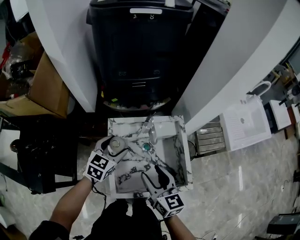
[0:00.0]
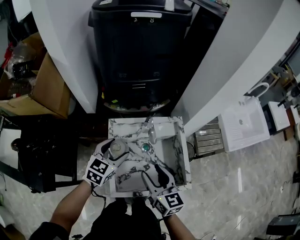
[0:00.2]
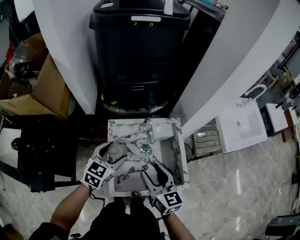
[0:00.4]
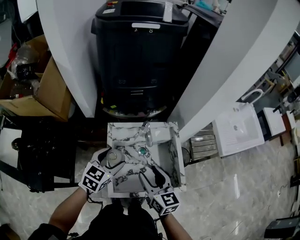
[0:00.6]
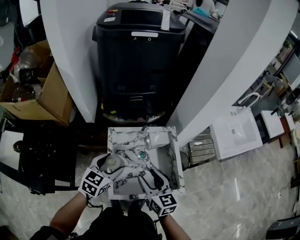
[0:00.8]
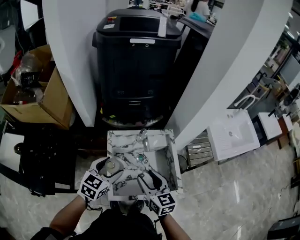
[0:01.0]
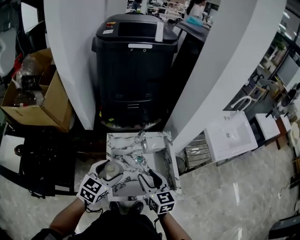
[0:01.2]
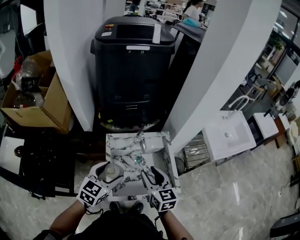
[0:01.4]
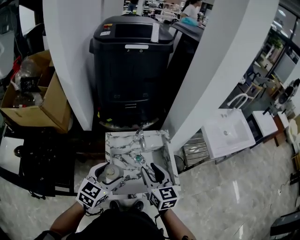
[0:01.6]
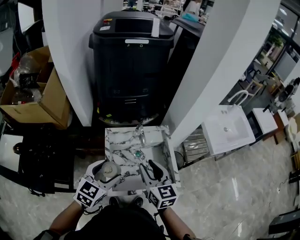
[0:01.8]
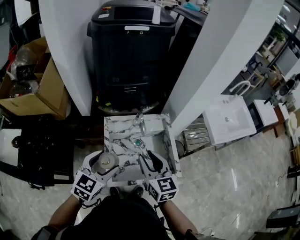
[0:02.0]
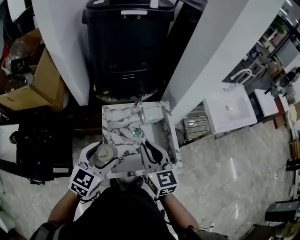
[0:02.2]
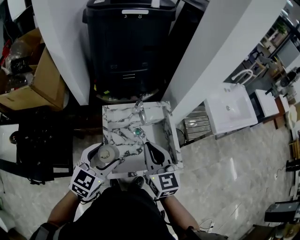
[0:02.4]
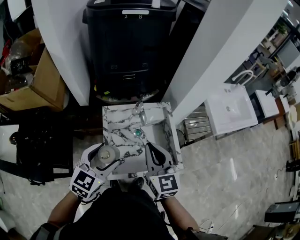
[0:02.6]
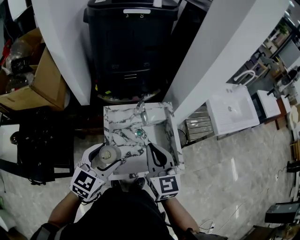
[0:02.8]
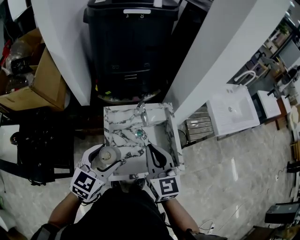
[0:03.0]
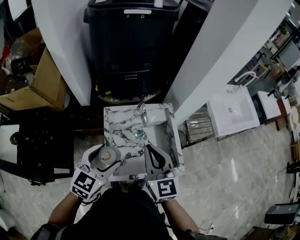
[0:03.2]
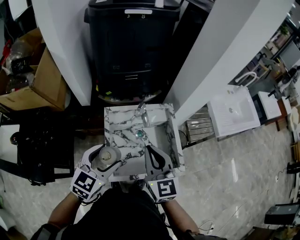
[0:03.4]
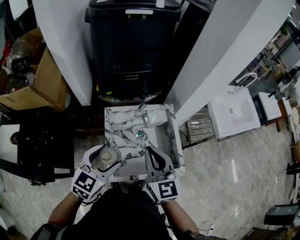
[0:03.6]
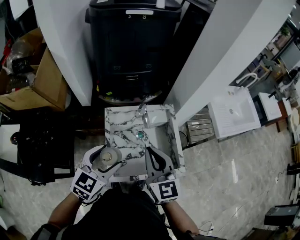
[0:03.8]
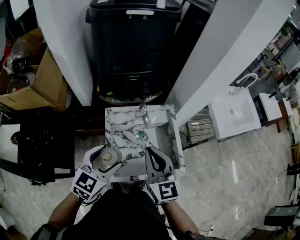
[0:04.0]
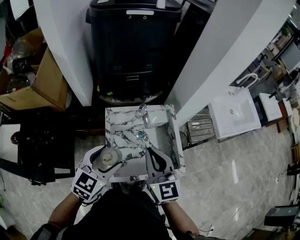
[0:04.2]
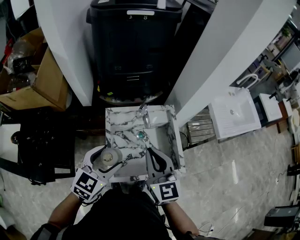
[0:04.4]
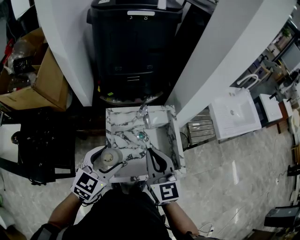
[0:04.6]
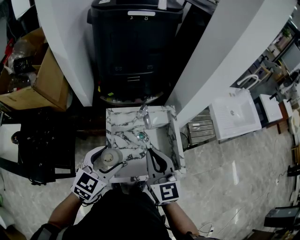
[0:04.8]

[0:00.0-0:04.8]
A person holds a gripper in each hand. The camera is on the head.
0:00.0 to 0:01.6: The left gripper moves backward and upward, some 20 cm, while the right gripper shifts some 10 cm upward.
0:01.6 to 0:03.2: The right gripper closes up.
0:03.2 to 0:04.8: Both grippers stay about where they are.

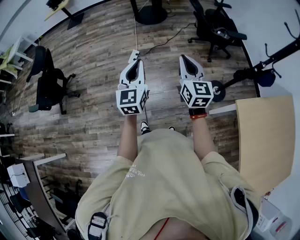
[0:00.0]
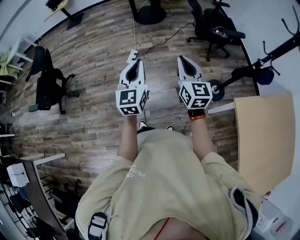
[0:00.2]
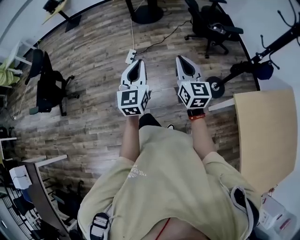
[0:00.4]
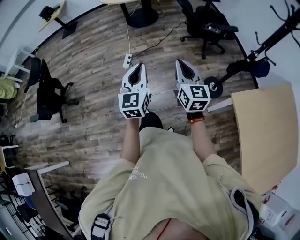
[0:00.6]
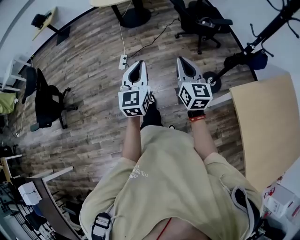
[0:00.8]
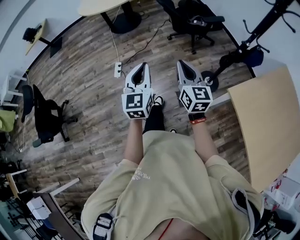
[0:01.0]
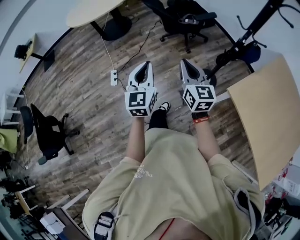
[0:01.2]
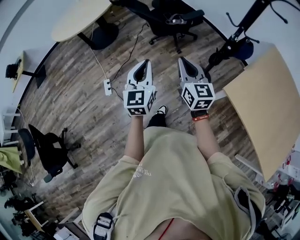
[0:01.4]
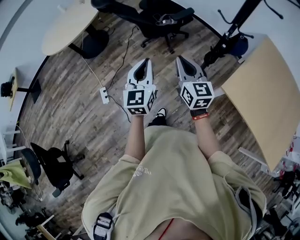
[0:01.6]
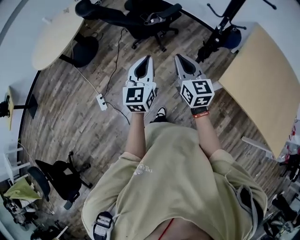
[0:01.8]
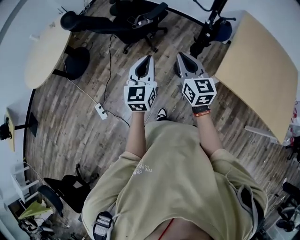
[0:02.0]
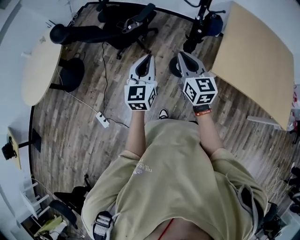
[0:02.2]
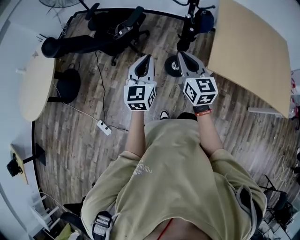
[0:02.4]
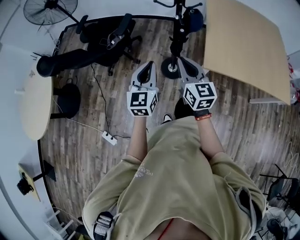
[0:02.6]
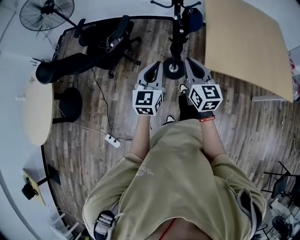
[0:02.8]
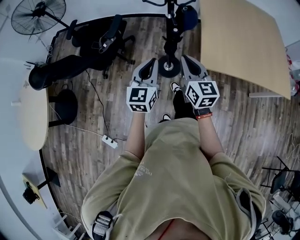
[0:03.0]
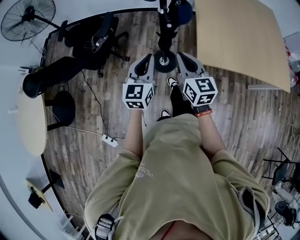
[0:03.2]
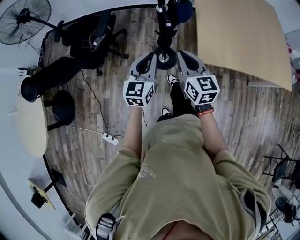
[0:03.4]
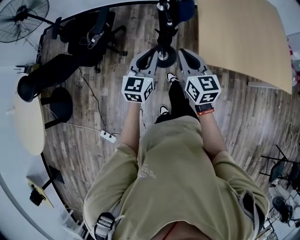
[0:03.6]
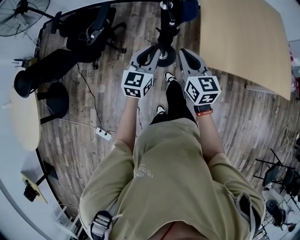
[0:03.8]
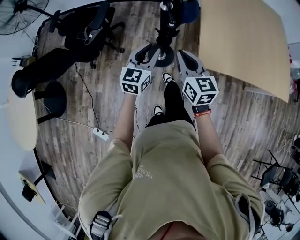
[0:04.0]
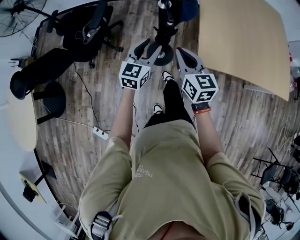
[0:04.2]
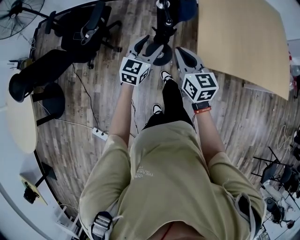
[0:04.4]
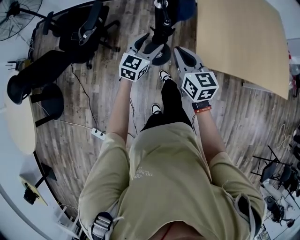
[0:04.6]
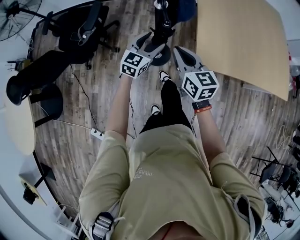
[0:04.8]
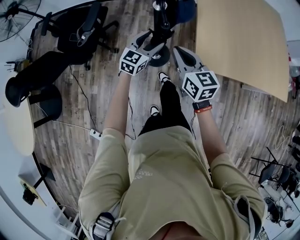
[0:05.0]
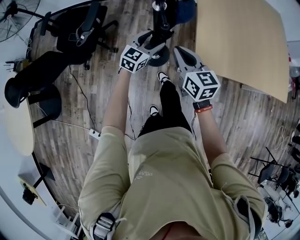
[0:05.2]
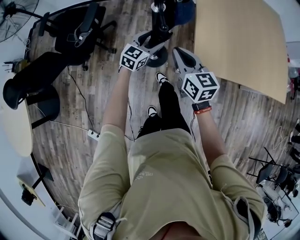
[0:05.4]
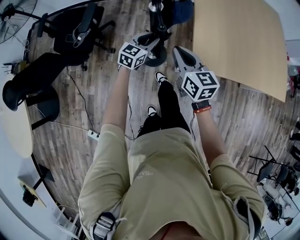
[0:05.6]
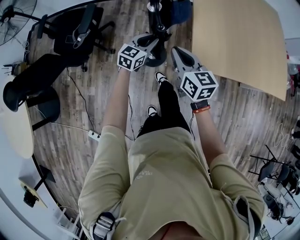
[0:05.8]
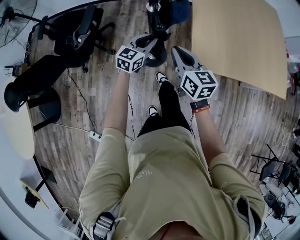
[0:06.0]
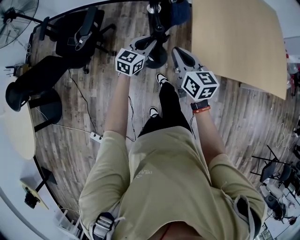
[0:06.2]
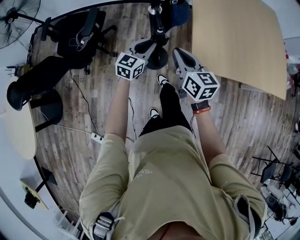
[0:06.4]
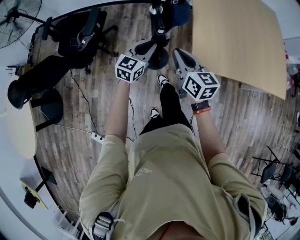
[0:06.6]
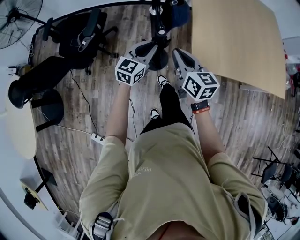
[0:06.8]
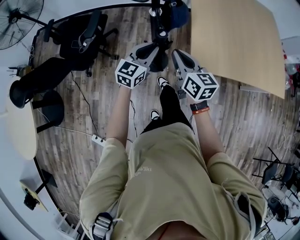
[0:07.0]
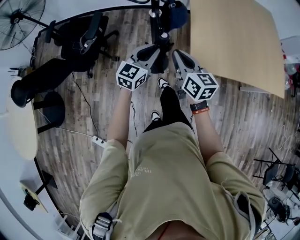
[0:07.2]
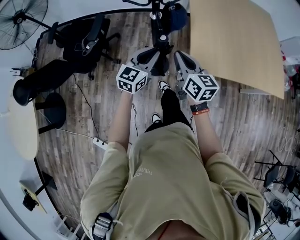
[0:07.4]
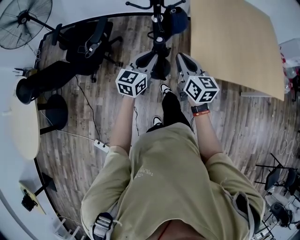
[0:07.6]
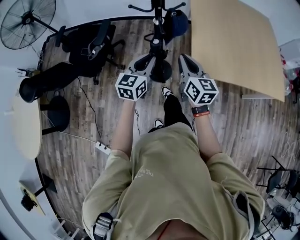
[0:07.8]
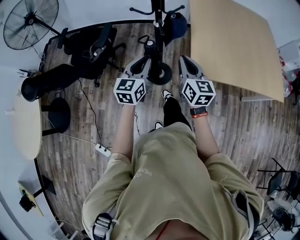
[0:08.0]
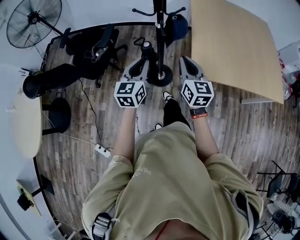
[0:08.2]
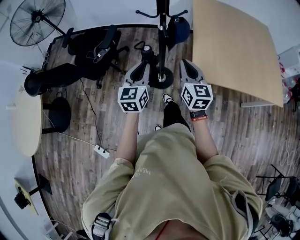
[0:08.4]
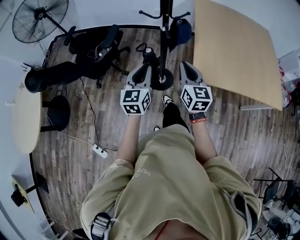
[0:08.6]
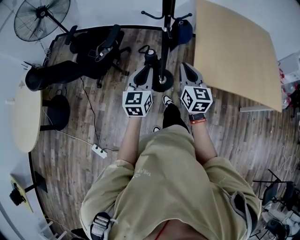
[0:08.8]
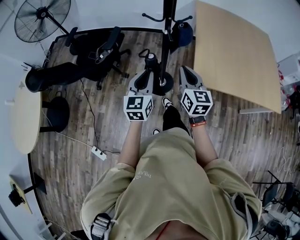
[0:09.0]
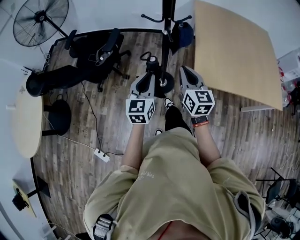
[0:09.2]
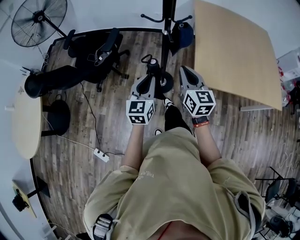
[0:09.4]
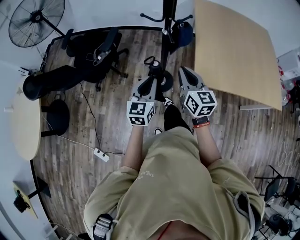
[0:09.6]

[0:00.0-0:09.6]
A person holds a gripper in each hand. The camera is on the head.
0:00.0 to 0:01.6: The left gripper changes place by about 40 cm, and swivels approximately 40 degrees. The right gripper moves about 30 cm, and swivels about 30 degrees.
0:01.6 to 0:03.2: The left gripper ends up approximately 30 cm from where it was, and rotates approximately 50 degrees; the right gripper moves about 25 cm, and changes its angle by roughly 40 degrees.
0:03.2 to 0:04.8: The right gripper goes about 10 cm forward and downward; the left gripper moves forward and downward, about 20 cm, swivels approximately 20 degrees, and opens up.
0:04.8 to 0:06.4: The left gripper closes.
0:06.4 to 0:08.0: The right gripper moves upward and backward, some 10 cm. The left gripper travels upward and backward by roughly 20 cm.
0:08.0 to 0:09.6: The left gripper is displaced backward by about 5 cm; the right gripper changes place by about 5 cm.

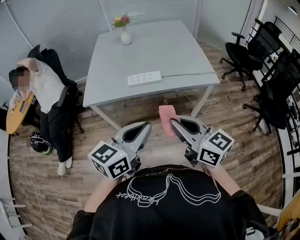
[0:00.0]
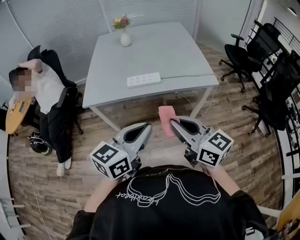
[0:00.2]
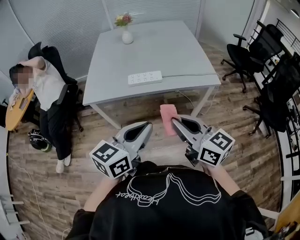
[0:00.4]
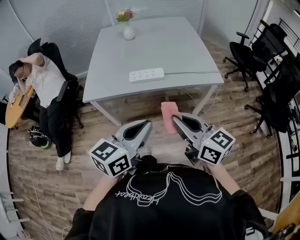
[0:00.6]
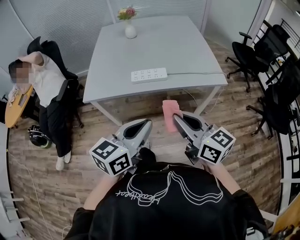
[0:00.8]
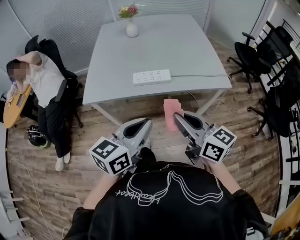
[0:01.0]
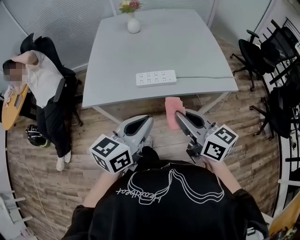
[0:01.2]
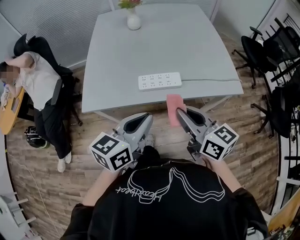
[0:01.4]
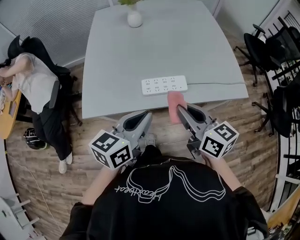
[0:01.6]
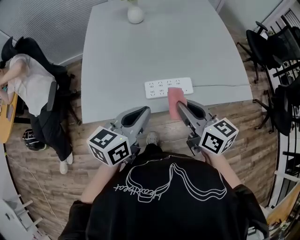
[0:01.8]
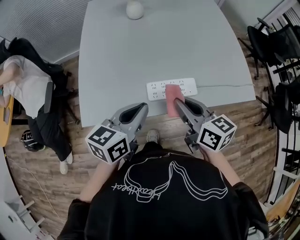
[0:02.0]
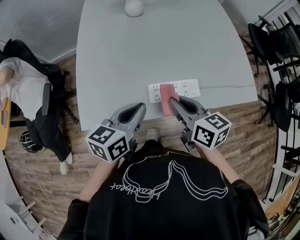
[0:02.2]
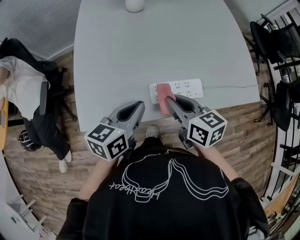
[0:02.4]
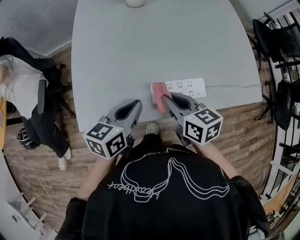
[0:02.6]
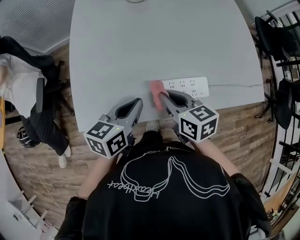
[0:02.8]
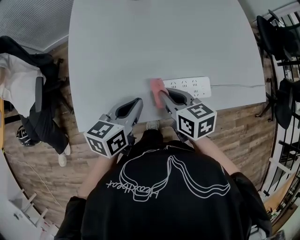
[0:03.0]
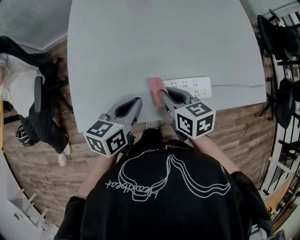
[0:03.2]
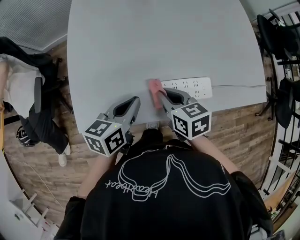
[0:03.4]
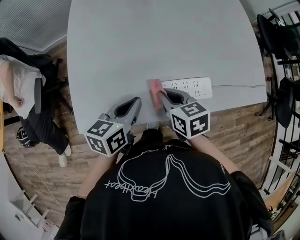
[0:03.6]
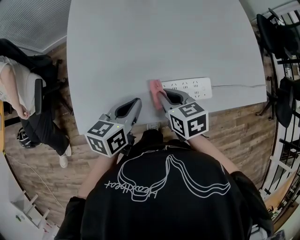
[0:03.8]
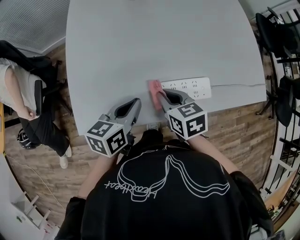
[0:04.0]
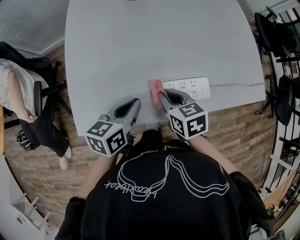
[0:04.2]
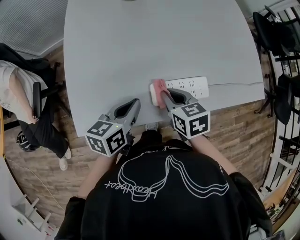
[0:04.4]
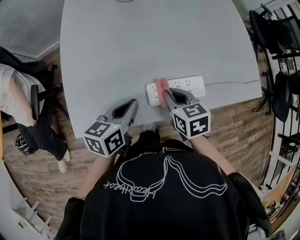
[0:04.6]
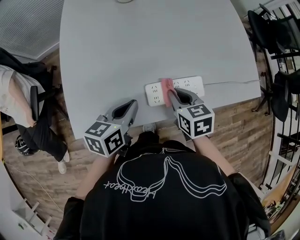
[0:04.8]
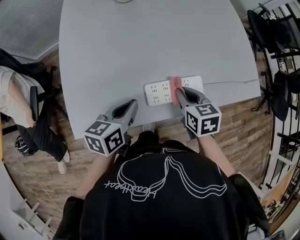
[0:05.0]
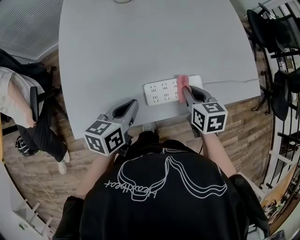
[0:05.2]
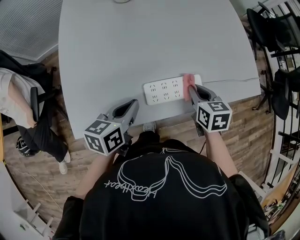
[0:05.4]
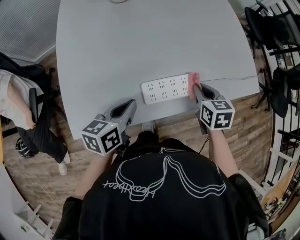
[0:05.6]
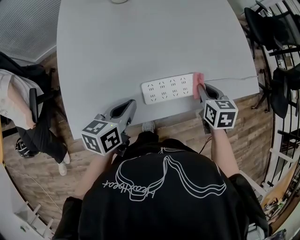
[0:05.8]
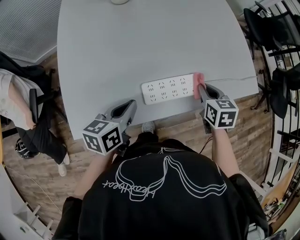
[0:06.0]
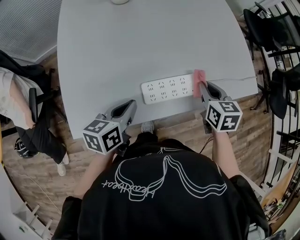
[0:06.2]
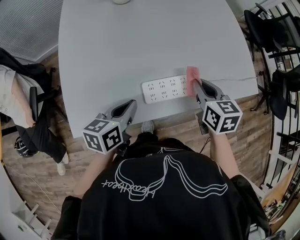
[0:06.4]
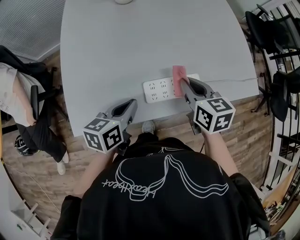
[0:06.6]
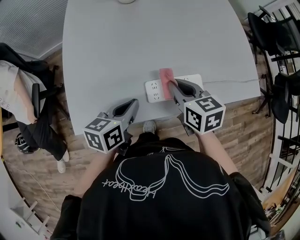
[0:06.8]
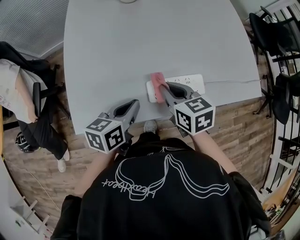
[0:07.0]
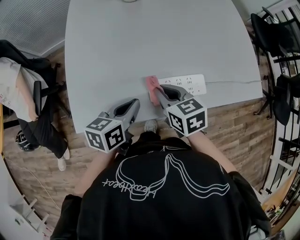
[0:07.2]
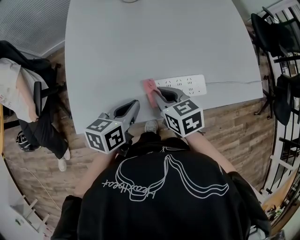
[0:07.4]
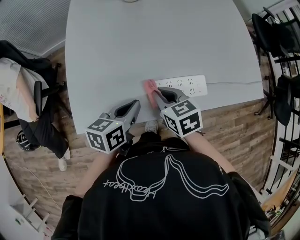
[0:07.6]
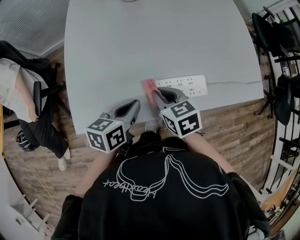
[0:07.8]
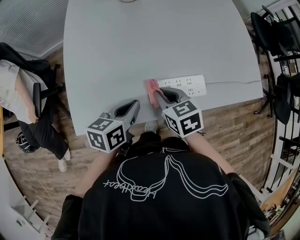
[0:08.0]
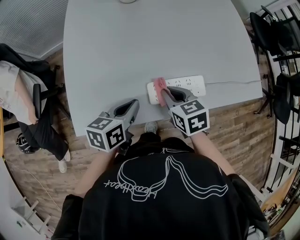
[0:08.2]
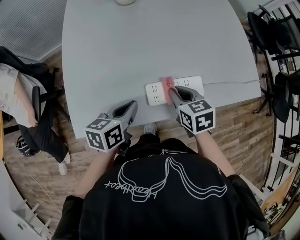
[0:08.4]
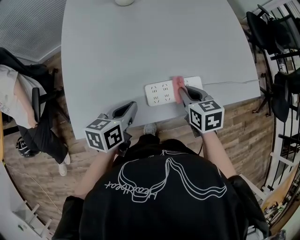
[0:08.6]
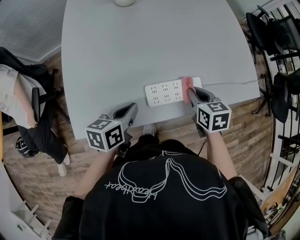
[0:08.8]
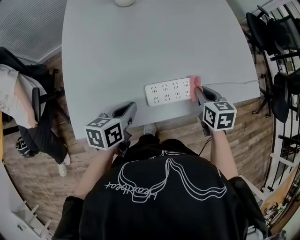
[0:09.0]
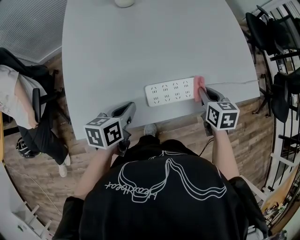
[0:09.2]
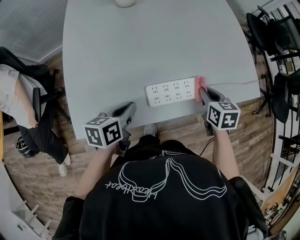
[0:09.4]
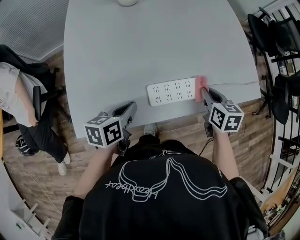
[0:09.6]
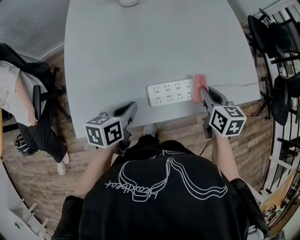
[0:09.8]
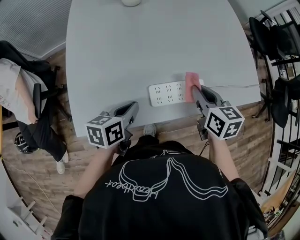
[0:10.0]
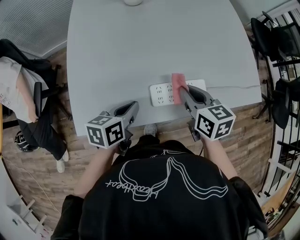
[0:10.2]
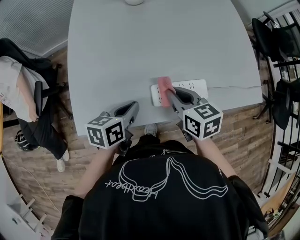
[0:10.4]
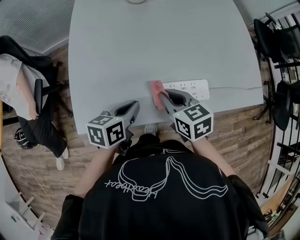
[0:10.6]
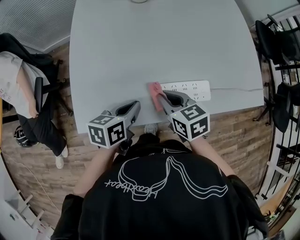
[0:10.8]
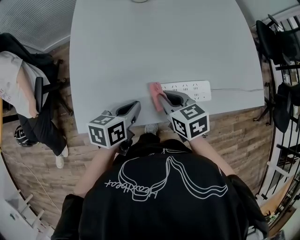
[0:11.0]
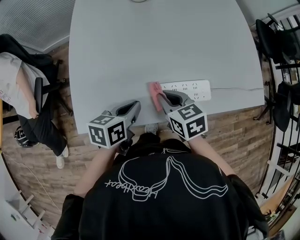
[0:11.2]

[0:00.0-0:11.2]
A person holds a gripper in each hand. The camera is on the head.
0:00.0 to 0:01.6: The right gripper goes about 30 cm forward. The left gripper heads forward and to the left, covering about 30 cm.
0:01.6 to 0:03.2: The left gripper travels forward, downward and to the left by roughly 25 cm; the right gripper heads downward, forward and to the left, covering about 30 cm, and turns by approximately 30 degrees.
0:03.2 to 0:04.8: The right gripper is displaced to the right by roughly 5 cm.
0:04.8 to 0:06.4: The right gripper moves to the right and upward, roughly 10 cm.
0:06.4 to 0:08.0: The right gripper goes roughly 15 cm to the left, and swivels approximately 20 degrees.
0:08.0 to 0:09.6: The right gripper travels to the right by approximately 20 cm, and changes its angle by about 20 degrees.
0:09.6 to 0:11.2: The right gripper shifts roughly 20 cm to the left, and turns by approximately 30 degrees.
